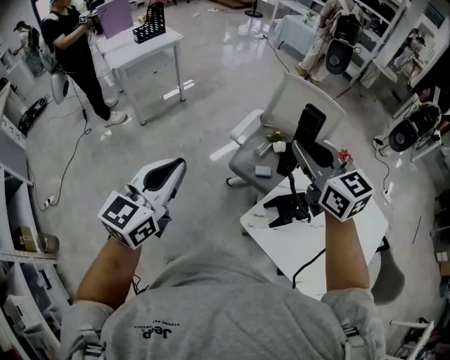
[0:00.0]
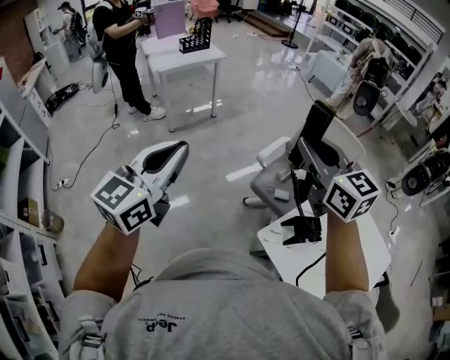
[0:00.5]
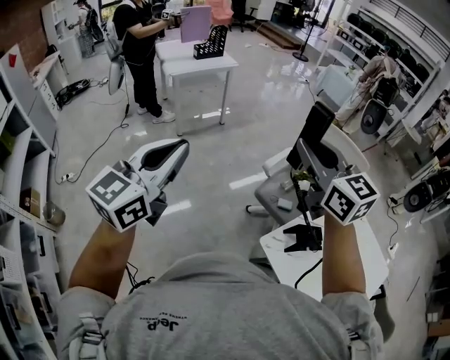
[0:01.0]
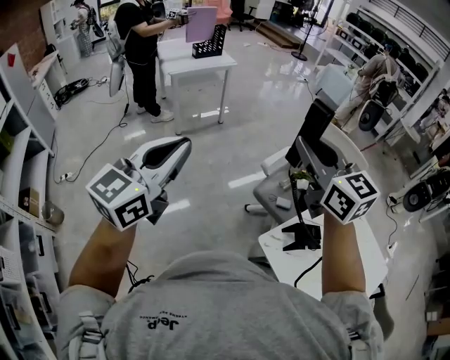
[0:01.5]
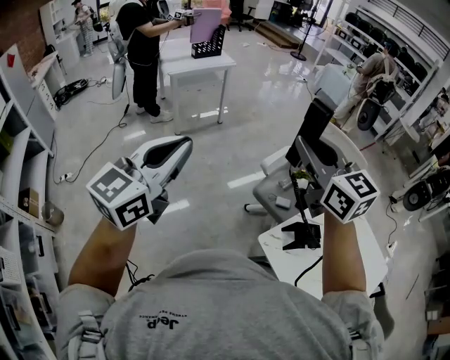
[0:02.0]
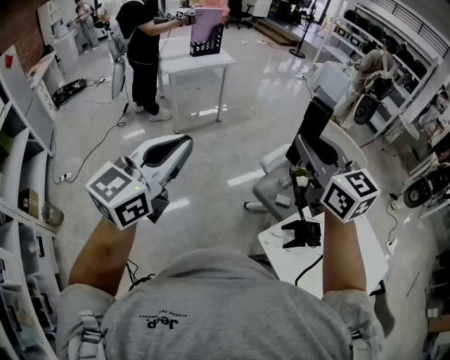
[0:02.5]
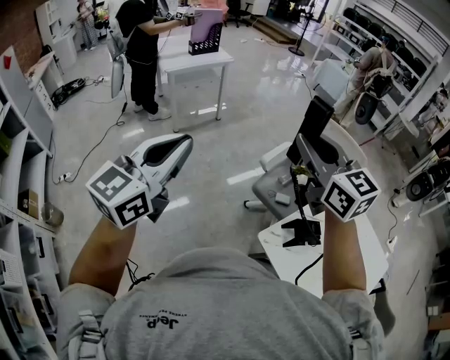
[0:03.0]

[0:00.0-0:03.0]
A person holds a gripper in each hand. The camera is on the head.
0:00.0 to 0:01.5: Both grippers move to the left and upward, about 15 cm.
0:01.5 to 0:03.0: Both grippers stay put.

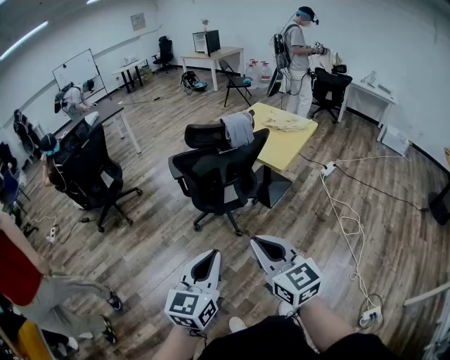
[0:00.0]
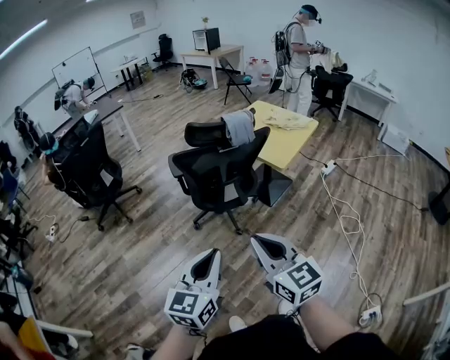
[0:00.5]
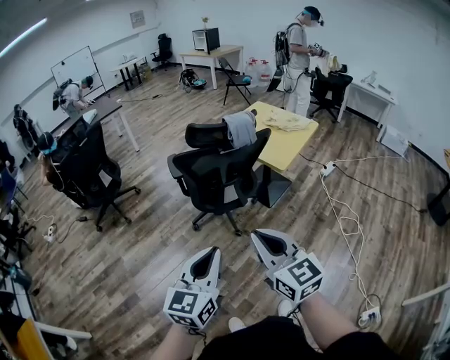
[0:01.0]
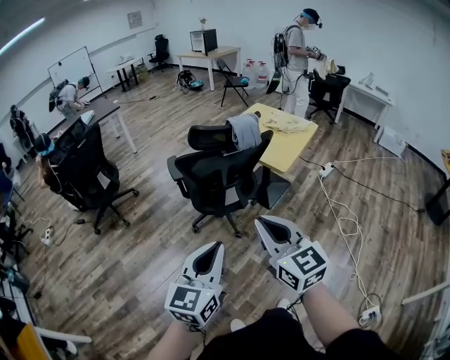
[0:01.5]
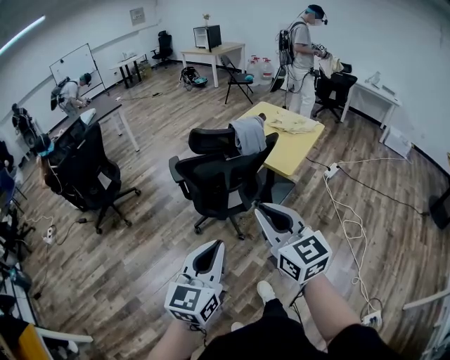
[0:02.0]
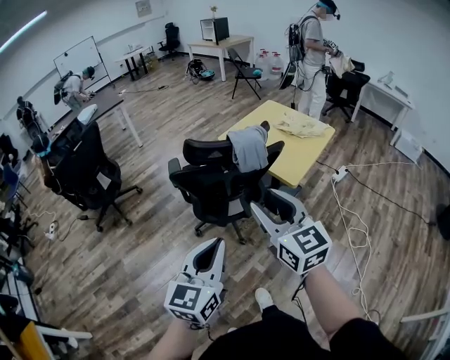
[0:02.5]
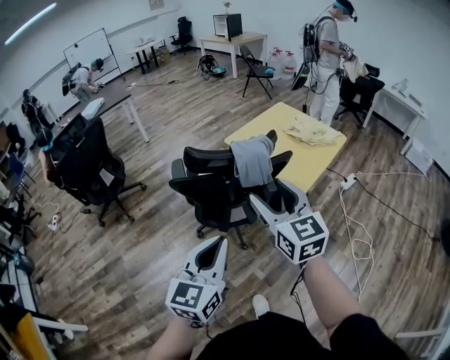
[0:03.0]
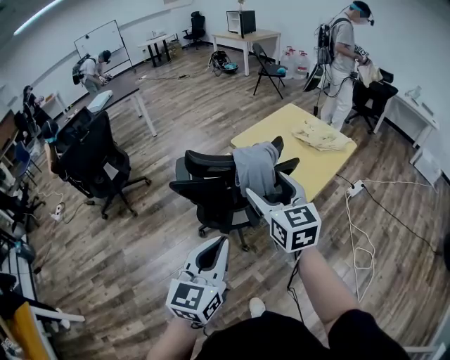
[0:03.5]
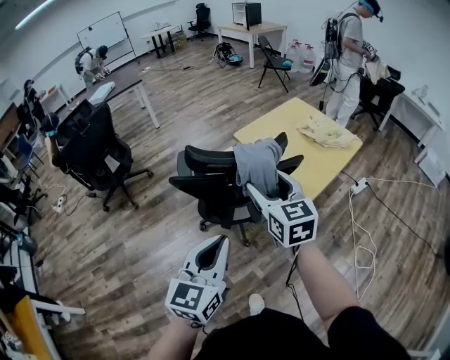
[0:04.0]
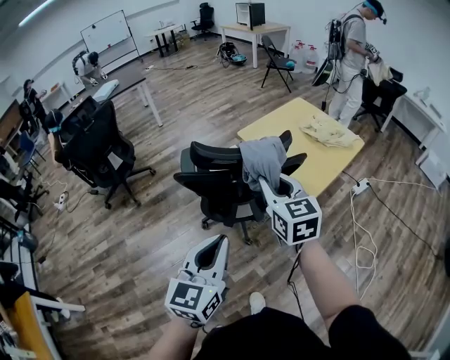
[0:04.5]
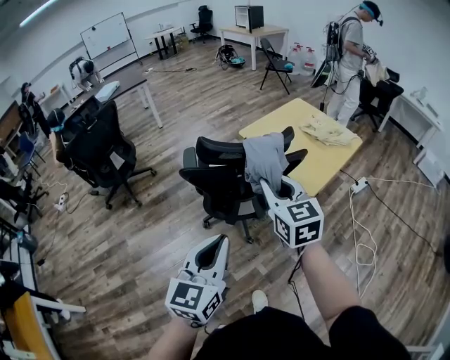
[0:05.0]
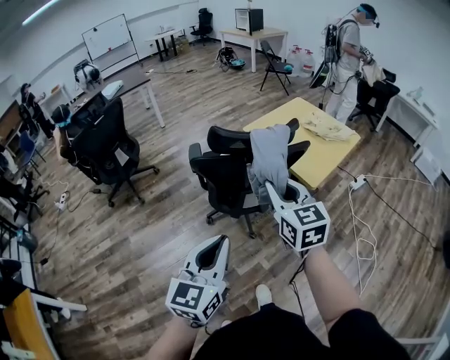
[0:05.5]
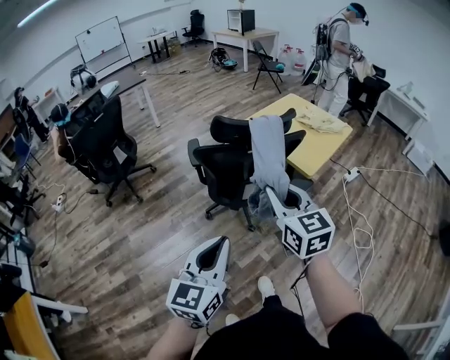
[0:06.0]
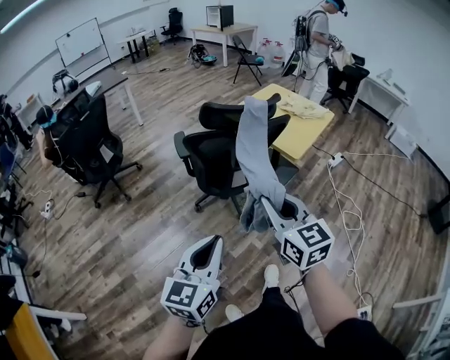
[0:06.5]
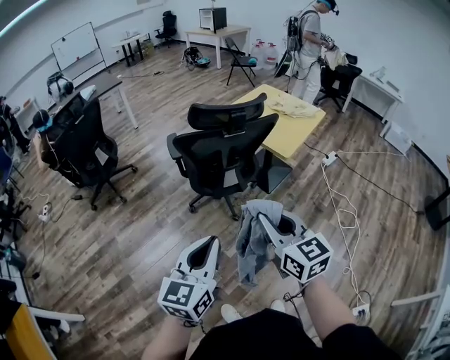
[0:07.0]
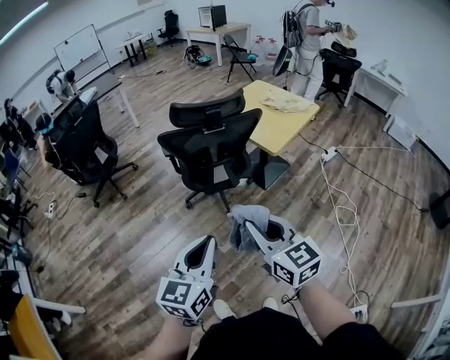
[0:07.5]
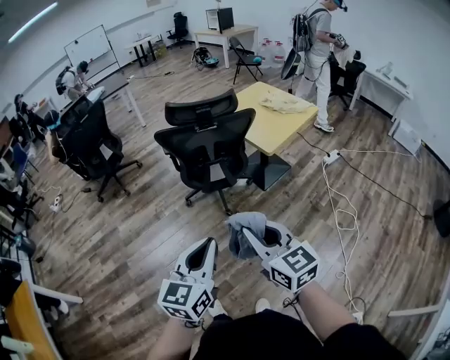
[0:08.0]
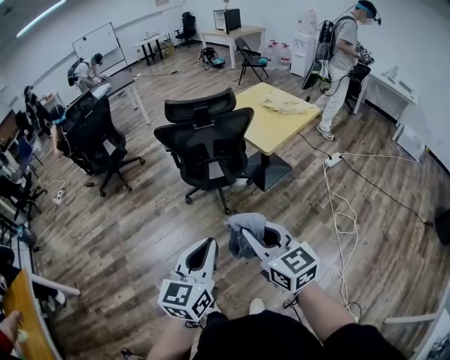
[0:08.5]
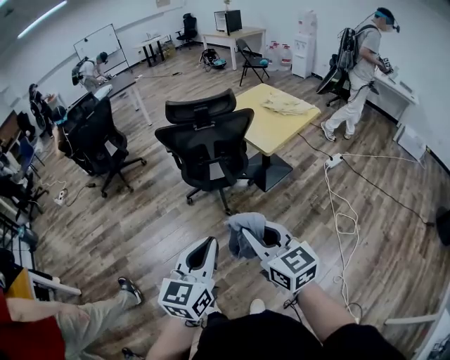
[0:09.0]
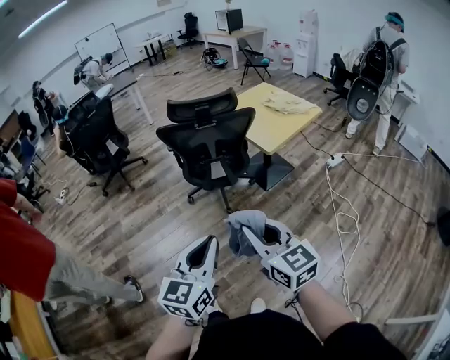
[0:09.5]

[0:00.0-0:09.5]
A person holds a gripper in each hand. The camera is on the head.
0:00.0 to 0:02.0: The grippers both shift forward by approximately 10 cm.
0:02.0 to 0:04.0: The right gripper travels forward by approximately 30 cm, and opens its fingers, while the left gripper goes roughly 25 cm forward and to the right.
0:04.0 to 0:05.5: The grippers both shift backward and to the left by roughly 15 cm. The right gripper closes its fingers.
0:05.5 to 0:07.5: The right gripper goes about 30 cm backward; the left gripper travels backward and to the right by some 20 cm.
0:07.5 to 0:09.5: The grippers both shift to the right and backward by some 15 cm.

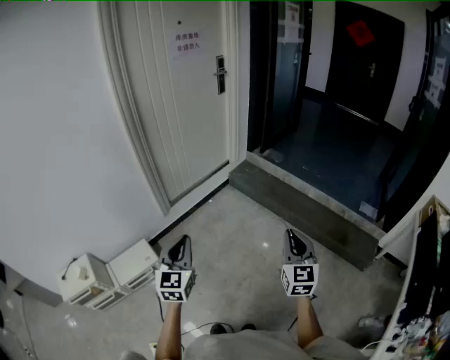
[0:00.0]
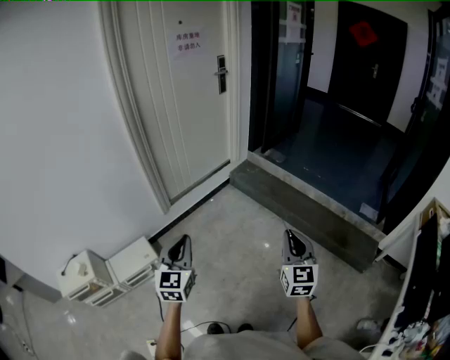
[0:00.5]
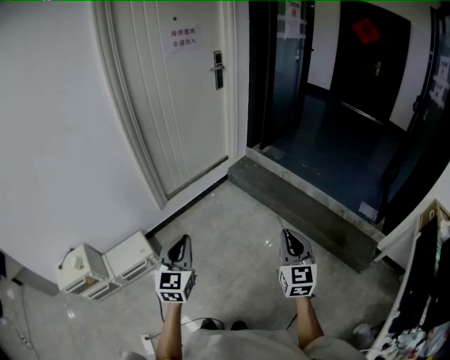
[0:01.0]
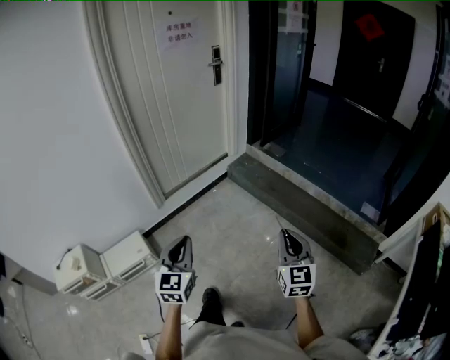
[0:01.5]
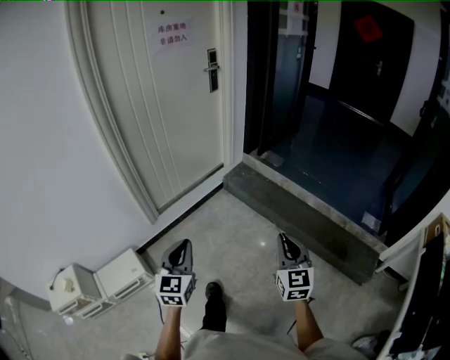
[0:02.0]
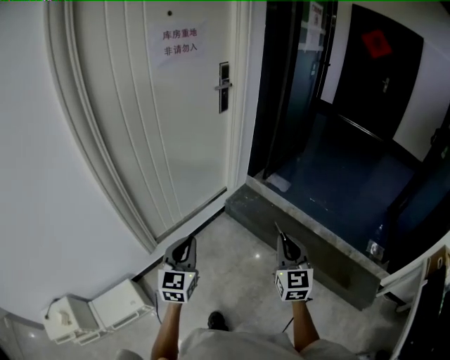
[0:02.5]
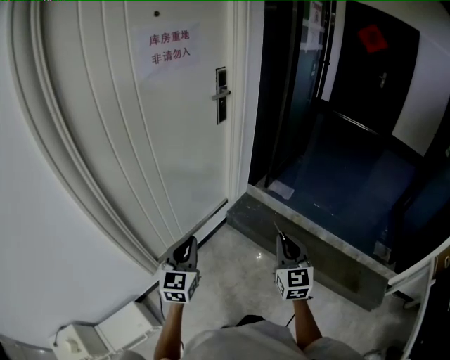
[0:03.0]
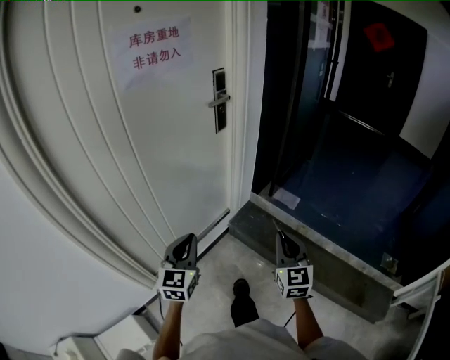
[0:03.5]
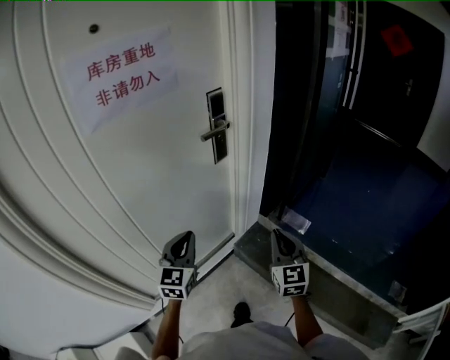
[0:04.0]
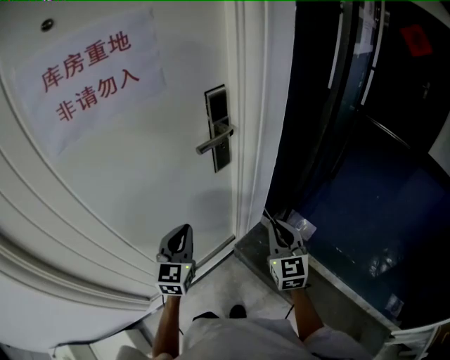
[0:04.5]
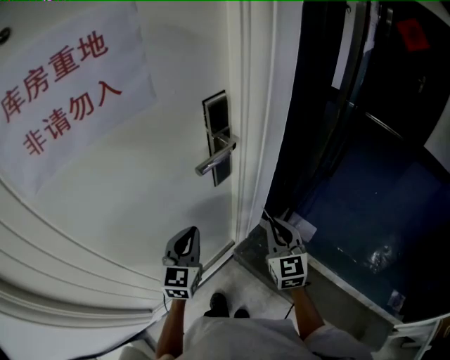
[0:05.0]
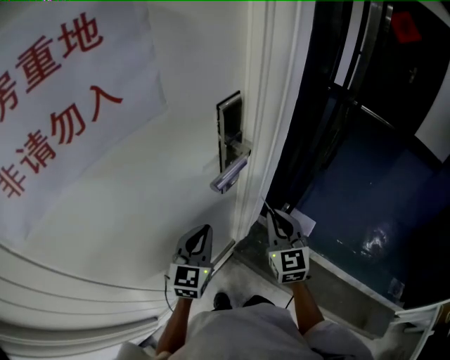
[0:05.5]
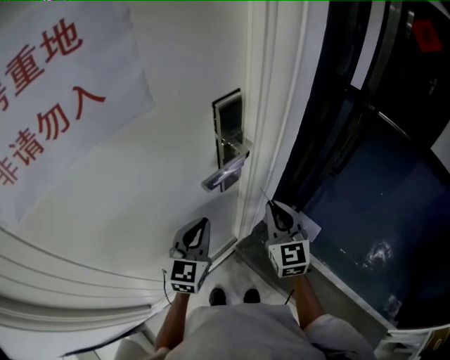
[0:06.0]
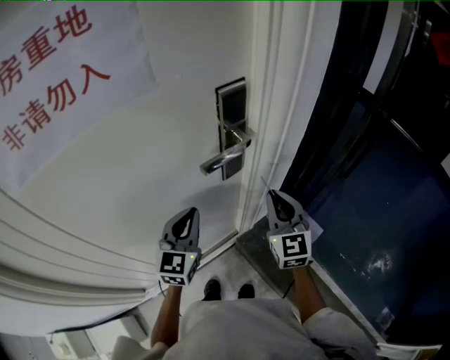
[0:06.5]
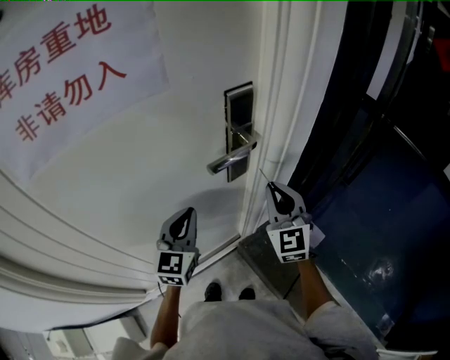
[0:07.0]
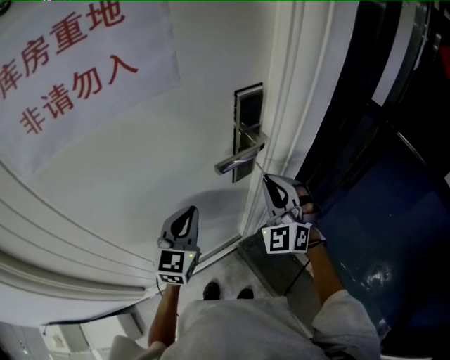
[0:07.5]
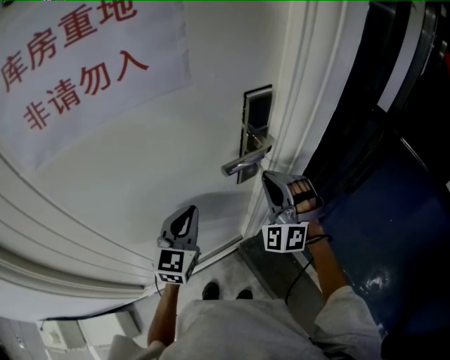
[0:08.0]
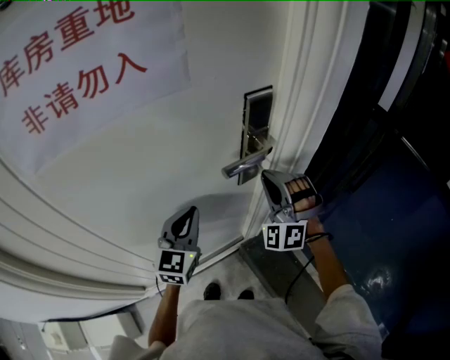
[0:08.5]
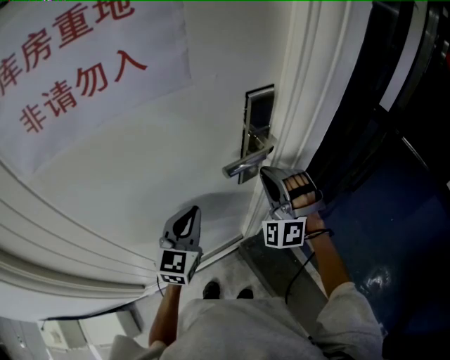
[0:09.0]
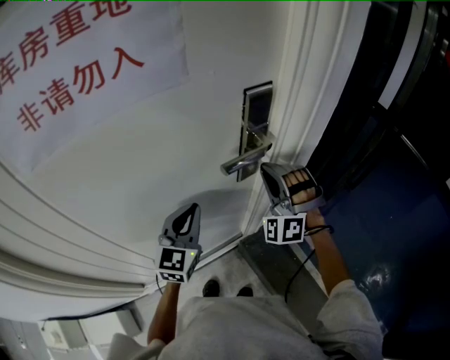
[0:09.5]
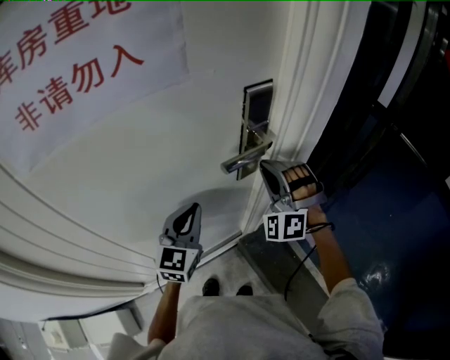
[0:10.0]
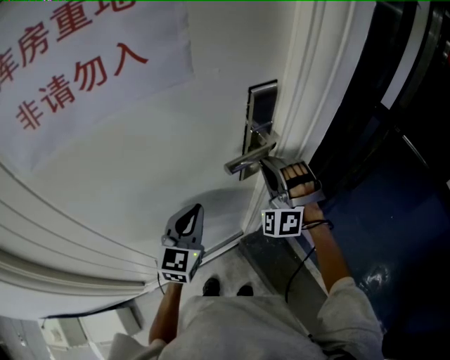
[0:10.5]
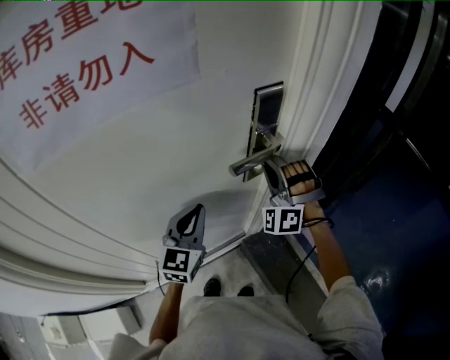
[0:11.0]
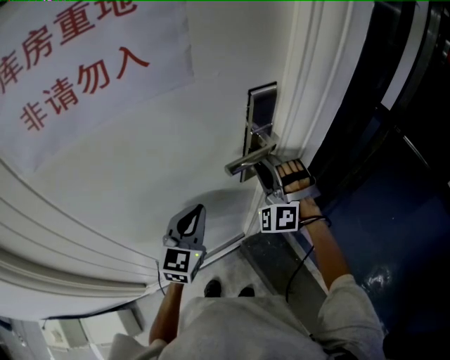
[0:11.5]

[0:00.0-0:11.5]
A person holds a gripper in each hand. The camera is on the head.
0:00.0 to 0:02.0: The left gripper travels forward and to the right by some 15 cm; the right gripper is displaced forward by roughly 15 cm.
0:02.0 to 0:04.0: Both grippers are carried forward, some 80 cm.
0:04.0 to 0:06.0: The grippers both shift forward by about 30 cm.
0:06.0 to 0:07.5: The left gripper shifts by roughly 5 cm; the right gripper changes place by roughly 5 cm, and rotates around the line of its fingers by roughly 50 degrees, counterclockwise from behind.
0:07.5 to 0:09.5: The right gripper changes its angle by about 30 degrees.
0:09.5 to 0:11.5: The right gripper opens.

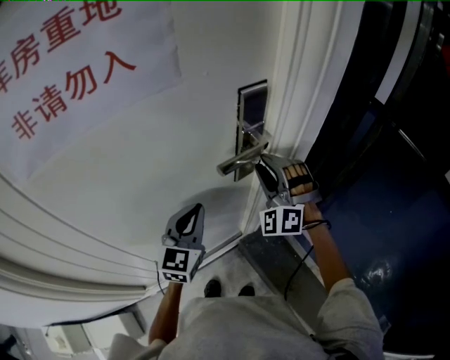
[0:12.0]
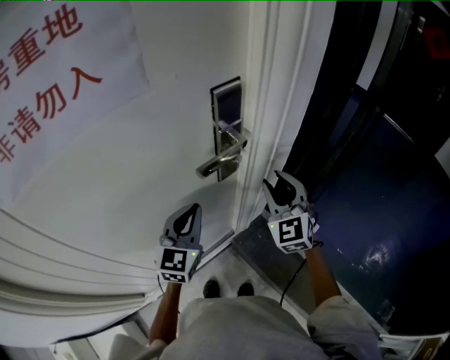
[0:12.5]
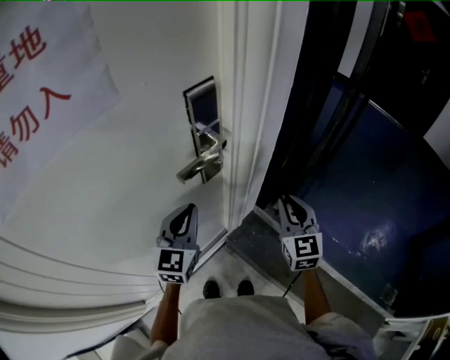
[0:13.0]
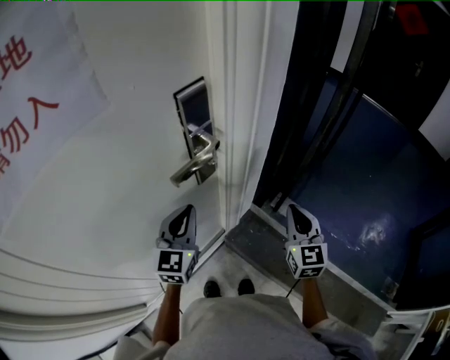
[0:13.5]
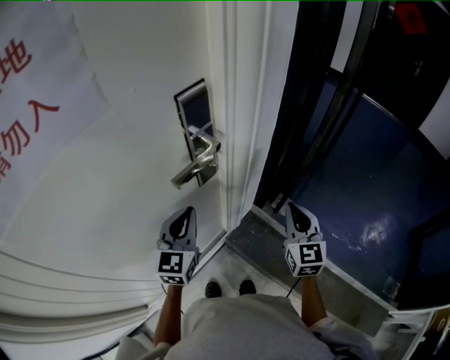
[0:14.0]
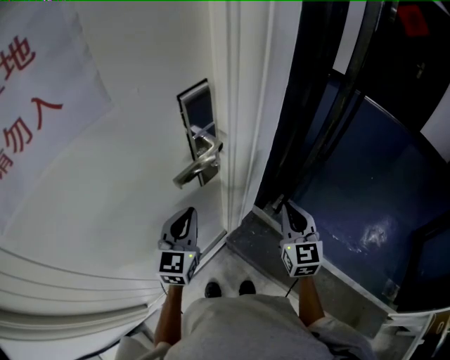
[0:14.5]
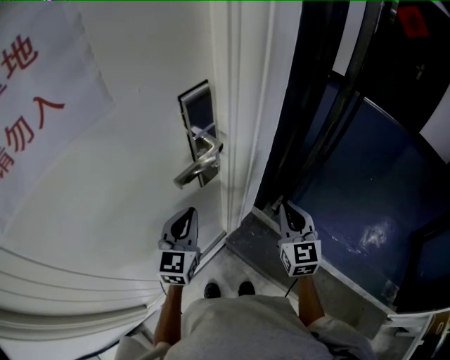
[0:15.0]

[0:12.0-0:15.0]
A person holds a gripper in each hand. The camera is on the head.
0:12.0 to 0:13.5: The right gripper is displaced to the right and backward by roughly 25 cm, rotates around the line of its fingers by some 70 degrees, clockwise from behind, and closes up, while the left gripper heads to the right, covering about 5 cm.
0:13.5 to 0:15.0: The grippers stay close to where they were, moving slightly.
